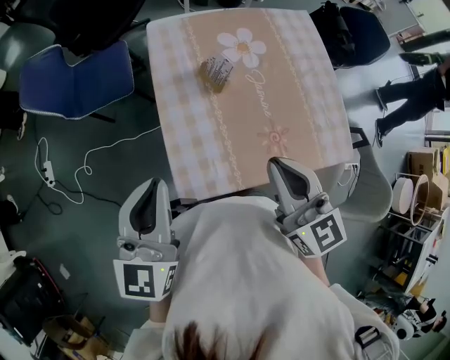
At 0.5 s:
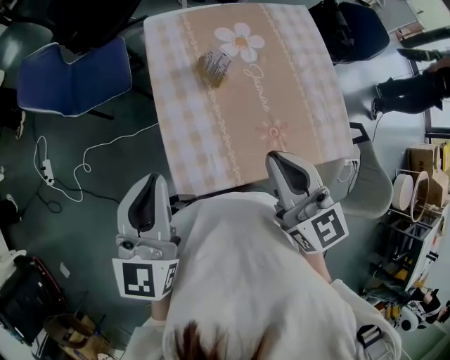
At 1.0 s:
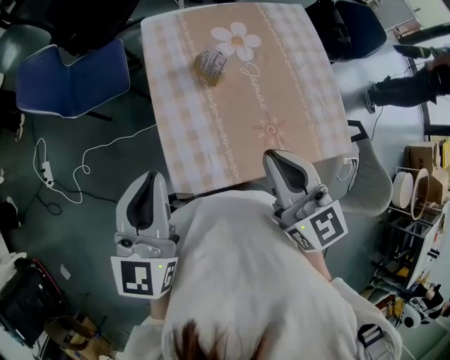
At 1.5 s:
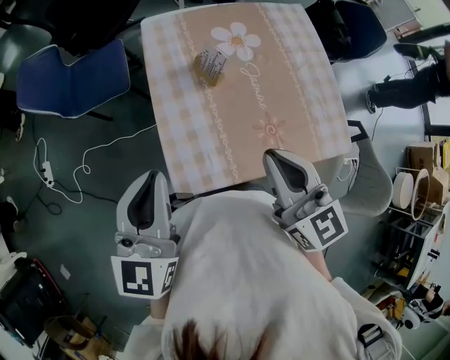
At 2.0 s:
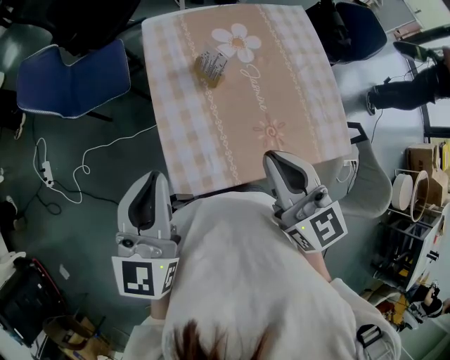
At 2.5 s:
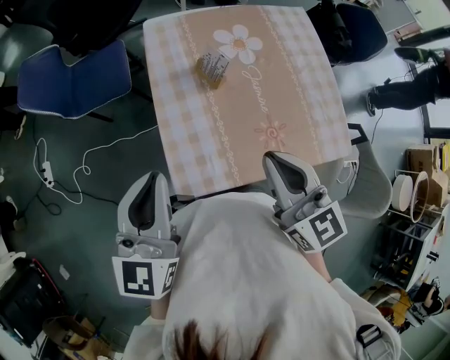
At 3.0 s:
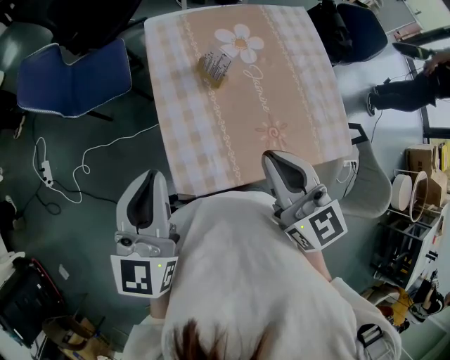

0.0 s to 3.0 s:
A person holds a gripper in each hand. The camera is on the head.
0.0 to 1.5 s: Both grippers stay about where they are.
1.5 to 3.0 s: Neither gripper changes place.

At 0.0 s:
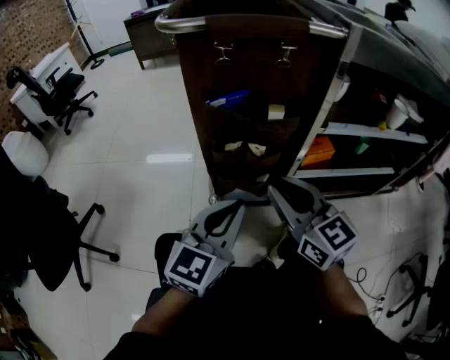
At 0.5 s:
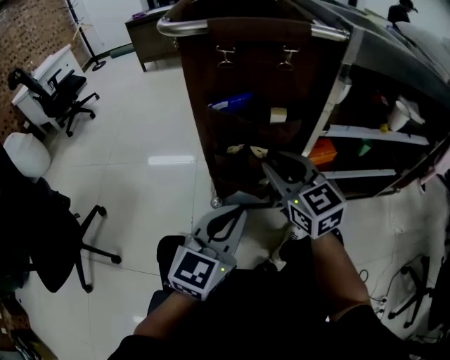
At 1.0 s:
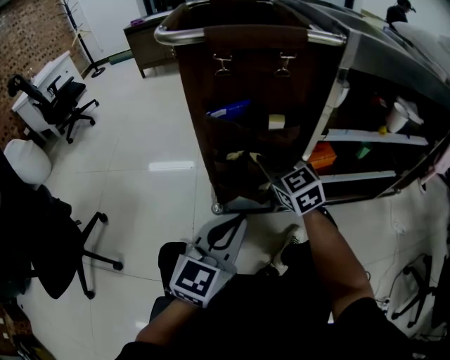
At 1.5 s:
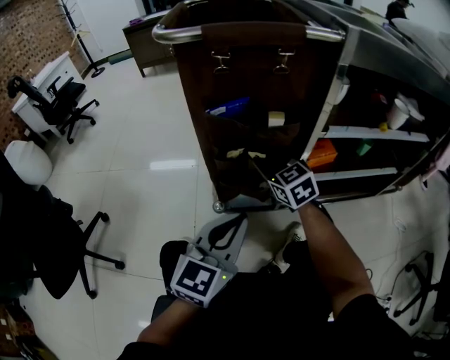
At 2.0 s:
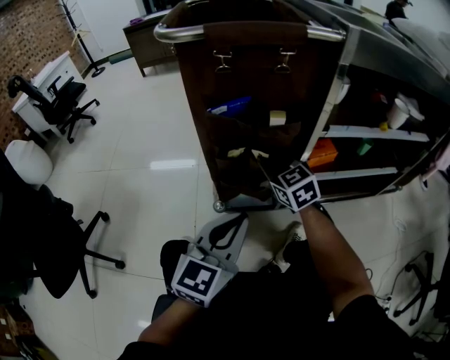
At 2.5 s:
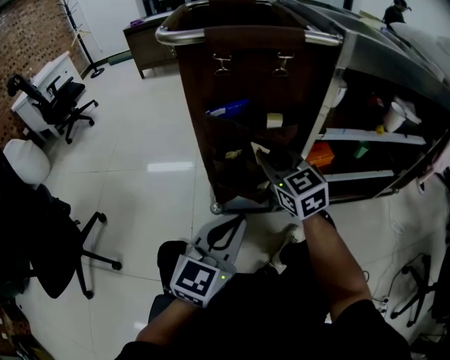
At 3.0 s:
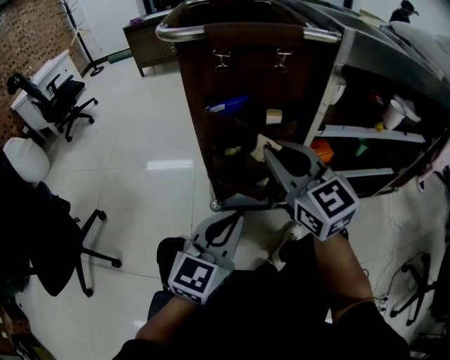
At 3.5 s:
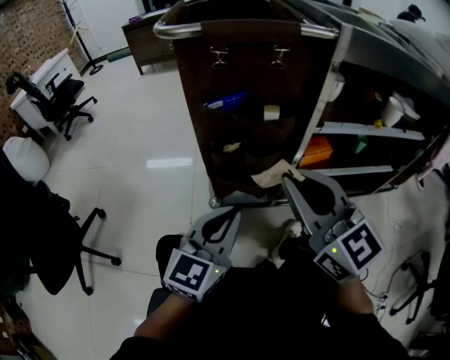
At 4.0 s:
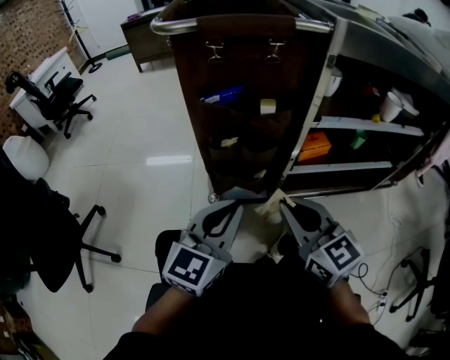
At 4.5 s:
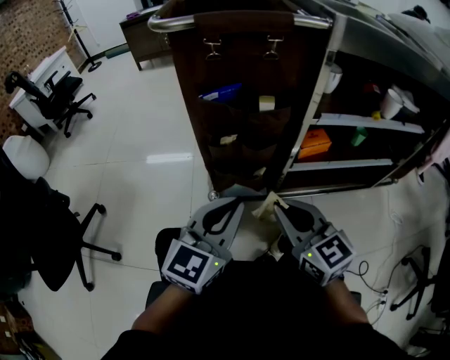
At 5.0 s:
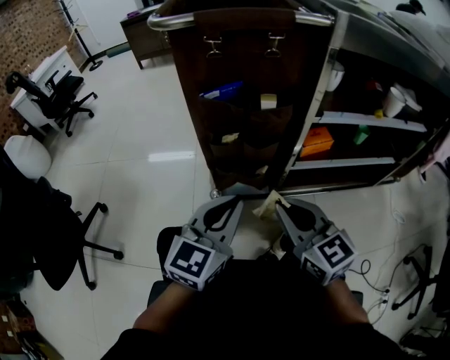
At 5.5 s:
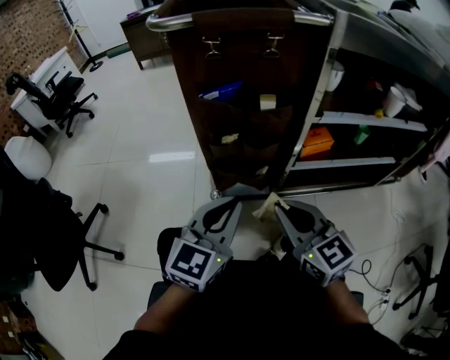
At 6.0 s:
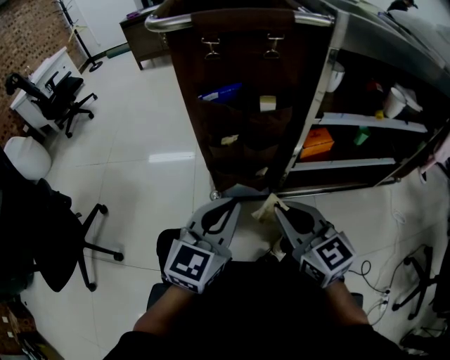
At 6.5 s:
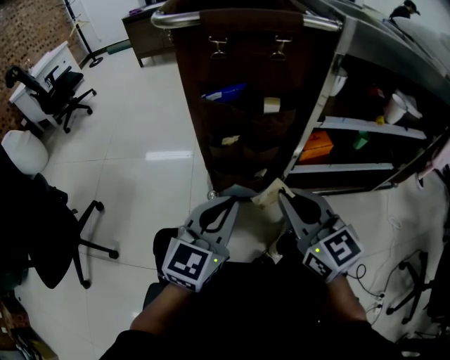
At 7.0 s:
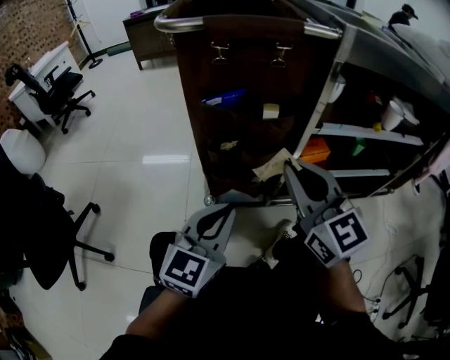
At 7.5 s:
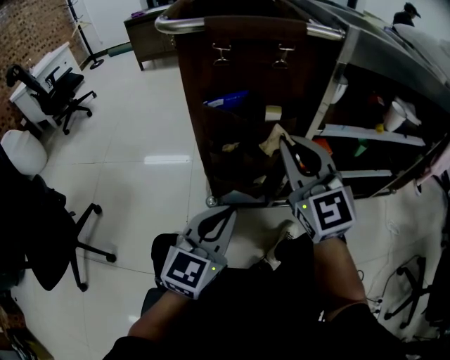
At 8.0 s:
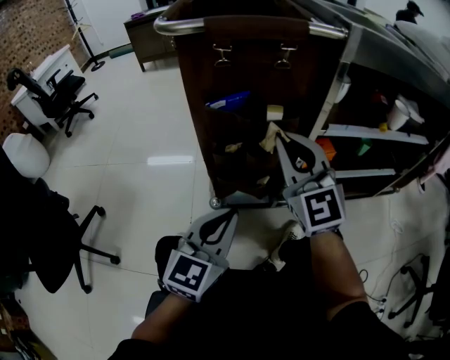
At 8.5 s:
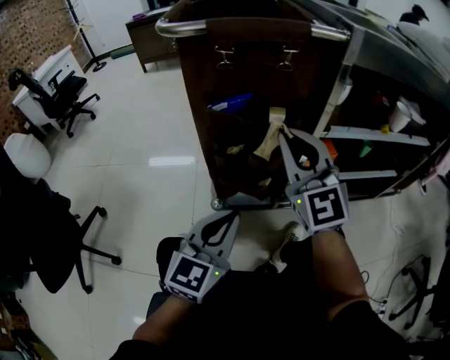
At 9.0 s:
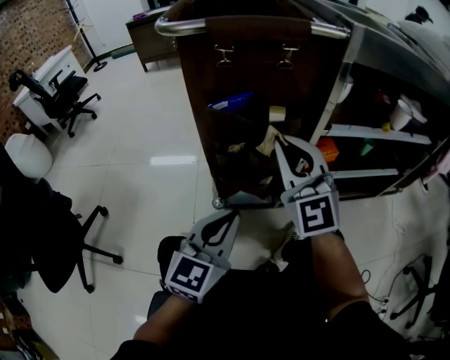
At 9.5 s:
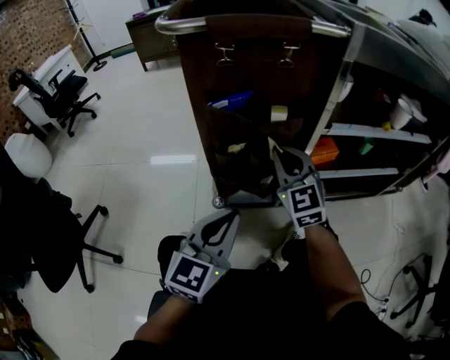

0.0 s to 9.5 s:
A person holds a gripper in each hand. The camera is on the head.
0.0 to 2.0 s: The right gripper is displaced forward and downward by roughly 15 cm, and turns by about 20 degrees.
2.0 to 4.0 s: The right gripper heads backward and upward, covering about 20 cm.
4.0 to 5.5 s: The grippers move only a little.
5.5 to 7.5 s: The right gripper moves forward and upward, about 15 cm, and turns by roughly 30 degrees.
7.5 to 9.5 s: The right gripper shifts roughly 10 cm downward and forward.

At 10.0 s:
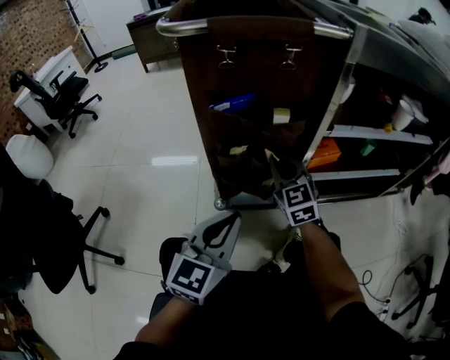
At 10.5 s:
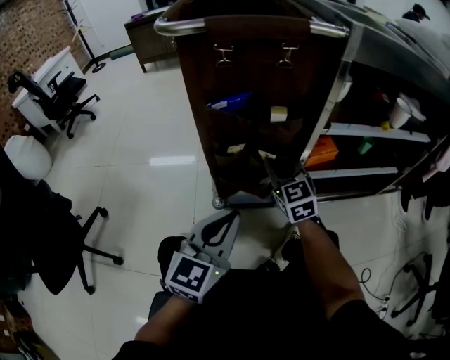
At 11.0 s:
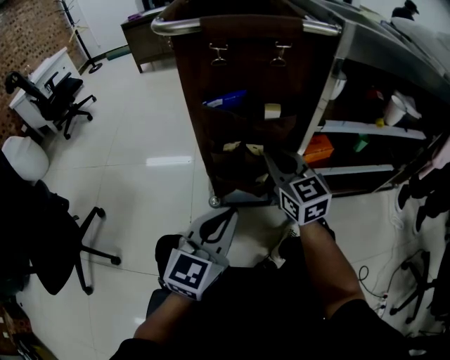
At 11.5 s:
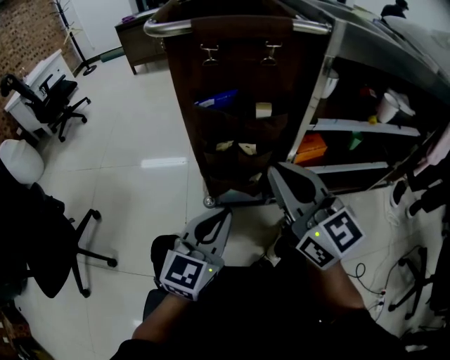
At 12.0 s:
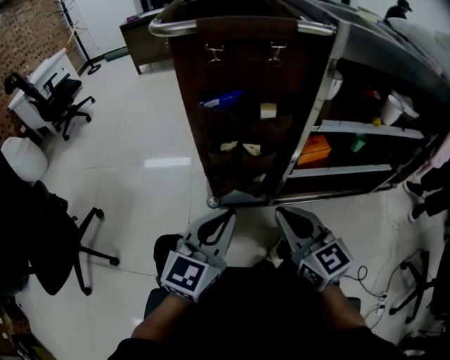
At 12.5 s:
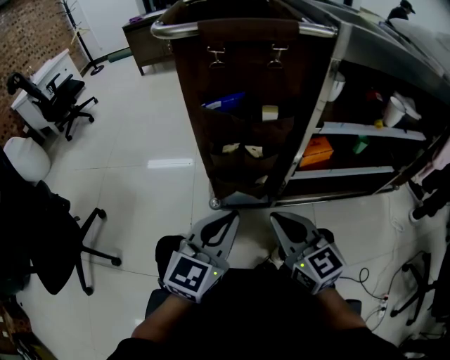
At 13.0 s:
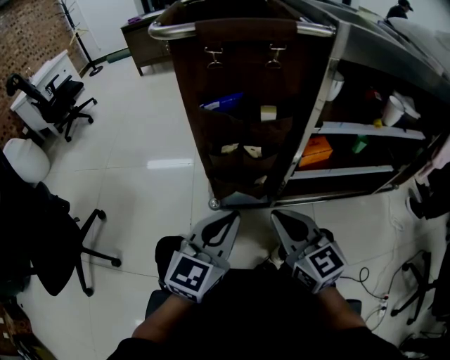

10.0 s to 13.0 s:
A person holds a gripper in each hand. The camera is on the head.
10.0 to 11.5 s: The right gripper moves upward and backward, about 20 cm, and rotates some 30 degrees.
11.5 to 13.0 s: The right gripper travels downward by roughly 10 cm.

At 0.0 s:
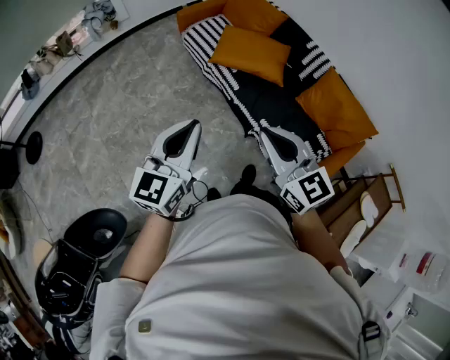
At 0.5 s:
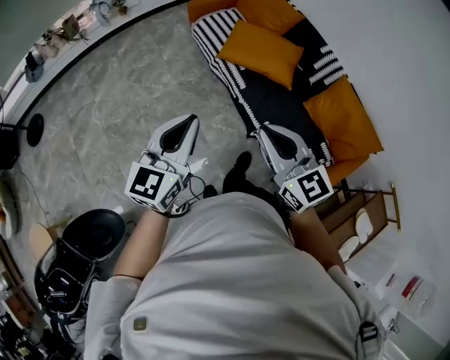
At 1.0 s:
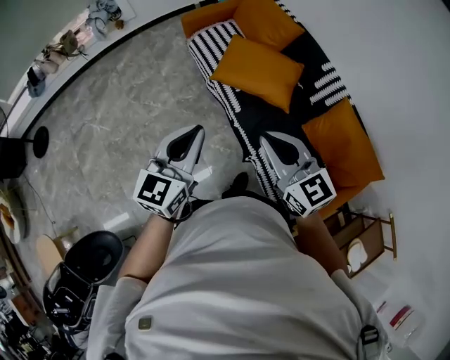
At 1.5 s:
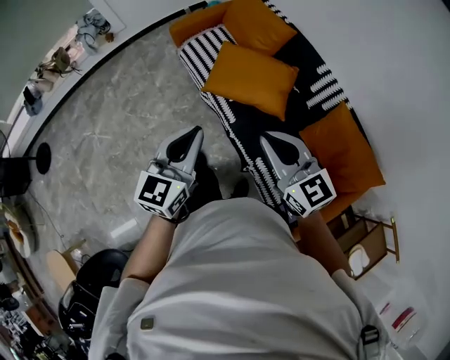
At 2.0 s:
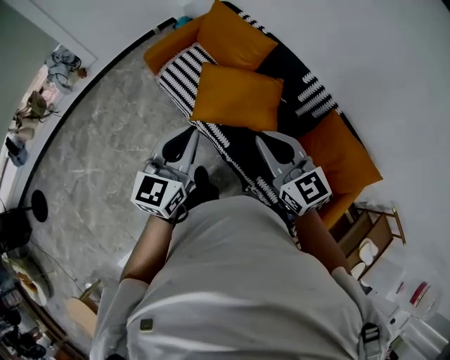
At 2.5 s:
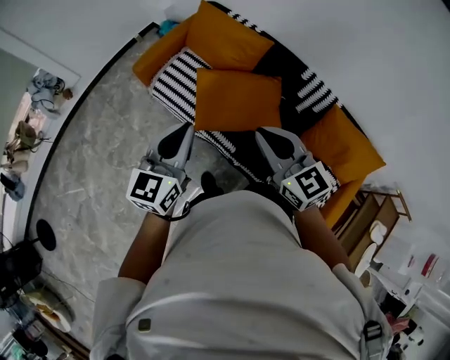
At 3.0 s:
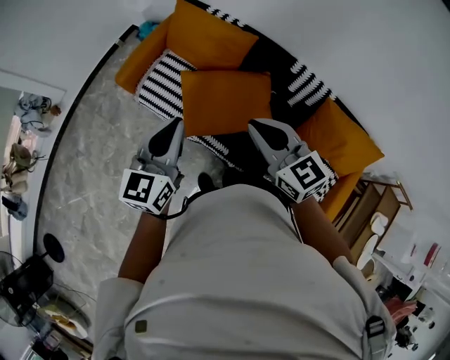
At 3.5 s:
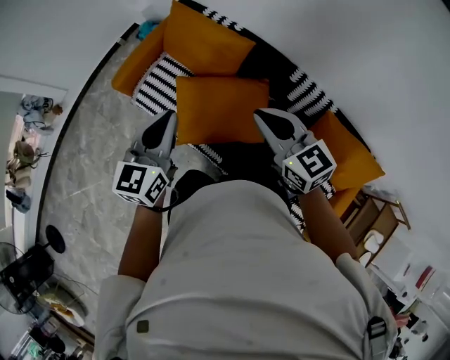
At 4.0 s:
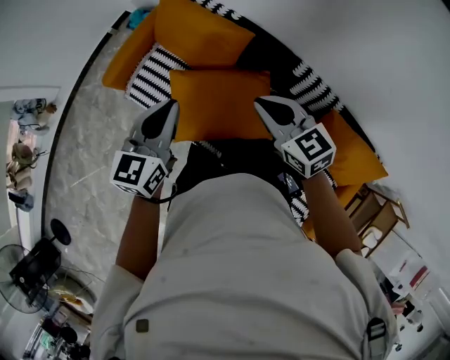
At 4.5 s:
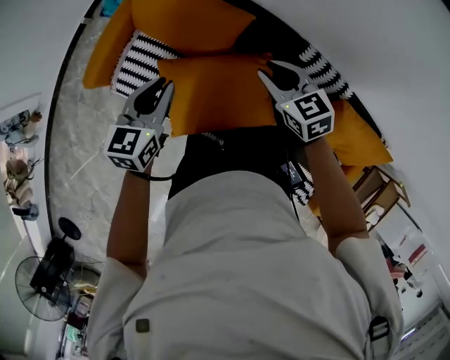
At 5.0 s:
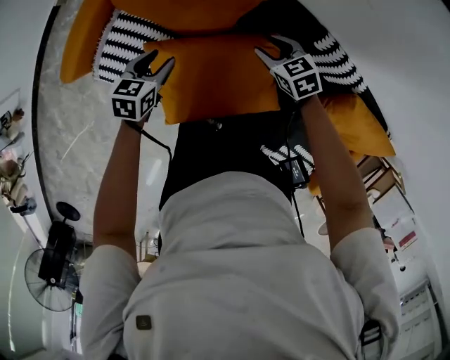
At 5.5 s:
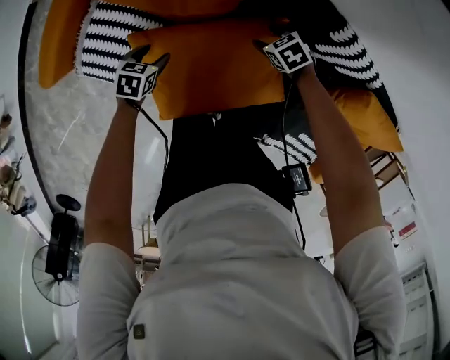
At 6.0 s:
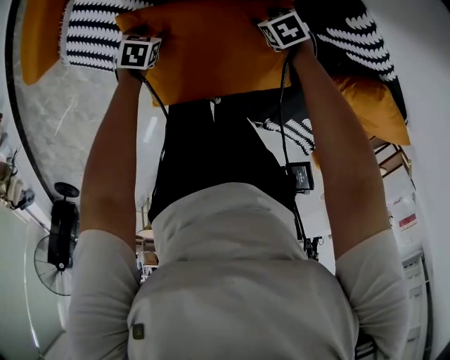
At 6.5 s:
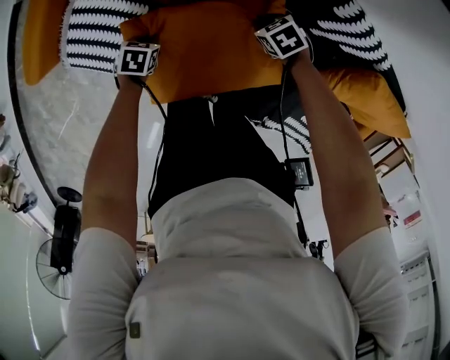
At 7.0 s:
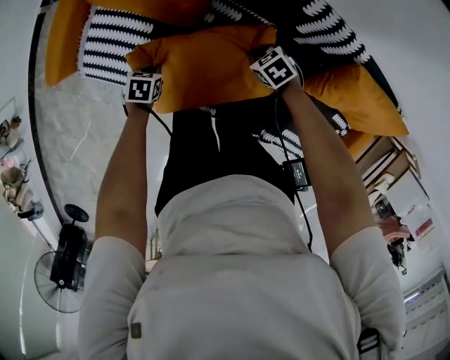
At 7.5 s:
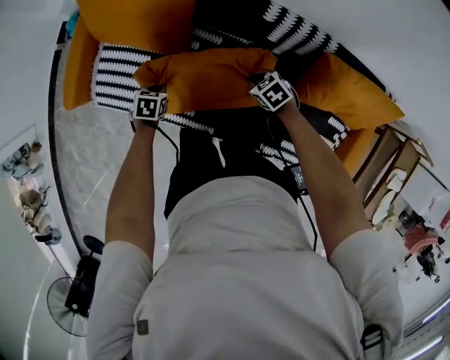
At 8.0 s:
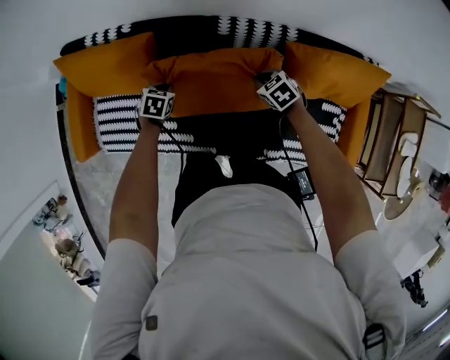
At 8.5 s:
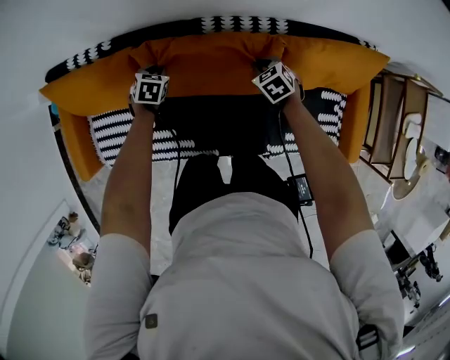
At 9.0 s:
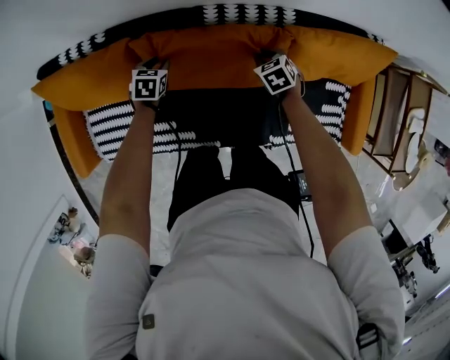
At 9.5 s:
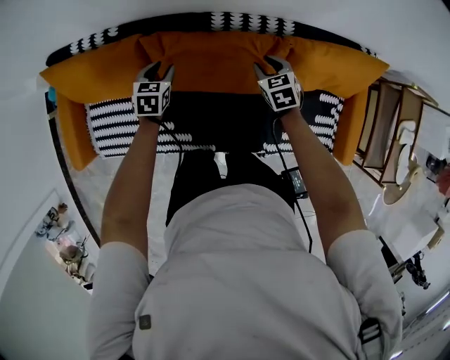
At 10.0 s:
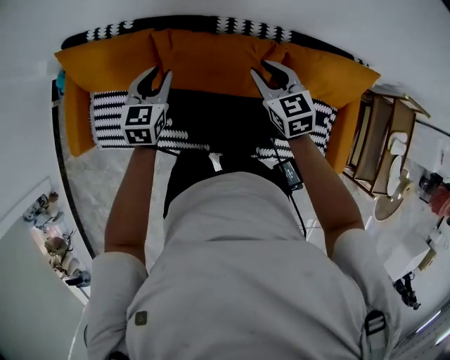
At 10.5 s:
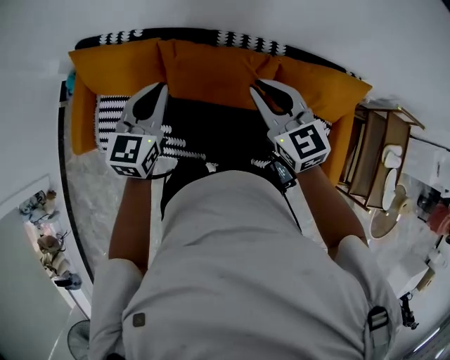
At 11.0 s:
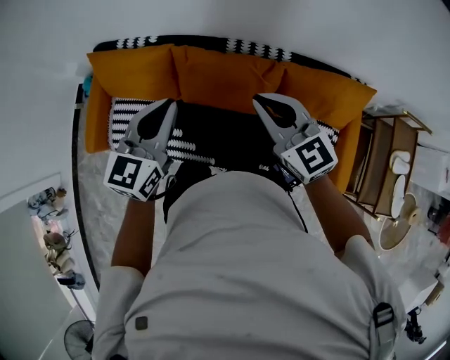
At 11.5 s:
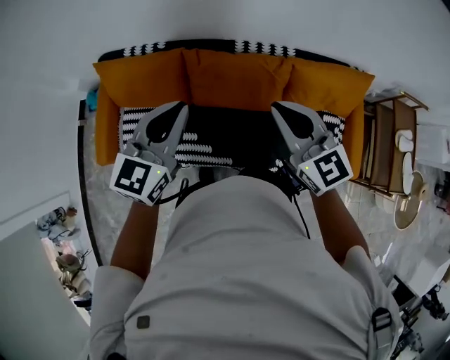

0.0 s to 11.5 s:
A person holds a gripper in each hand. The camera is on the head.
0.0 to 2.0 s: The two grippers travel together, forward, about 50 cm.
2.0 to 4.0 s: Both grippers move forward, approximately 30 cm.
4.0 to 6.0 s: The grippers both shift downward by some 60 cm. The right gripper angles its fingers downward, by some 50 degrees, and opens up. Meanwhile the left gripper angles its fingers downward, by some 50 degrees, and opens.
6.0 to 7.5 s: Both grippers move upward, some 20 cm. The left gripper closes up; the right gripper closes up.
7.5 to 9.5 s: The left gripper moves some 25 cm, changes its angle by roughly 30 degrees, and opens, while the right gripper swings up and down, approximately 10 cm each way, with 2 reversals, changes its angle by approximately 40 degrees, and opens.
9.5 to 11.5 s: The two grippers go approximately 50 cm upward and backward. The right gripper points its fingers some 40 degrees further upward, and closes; the left gripper tips its fingers upward by about 40 degrees, and closes its fingers.
